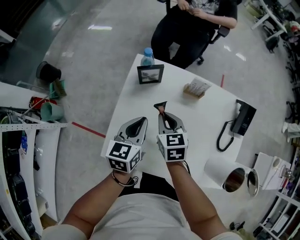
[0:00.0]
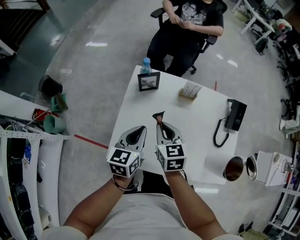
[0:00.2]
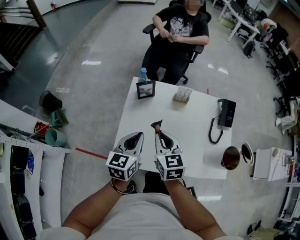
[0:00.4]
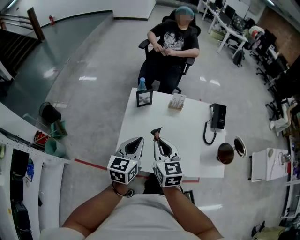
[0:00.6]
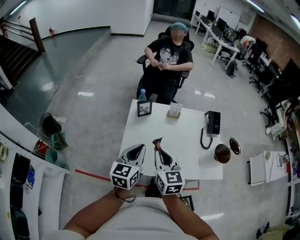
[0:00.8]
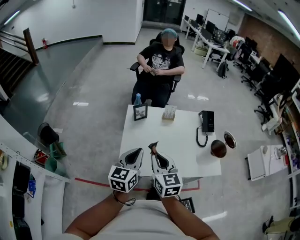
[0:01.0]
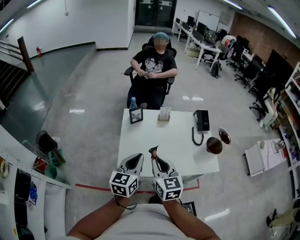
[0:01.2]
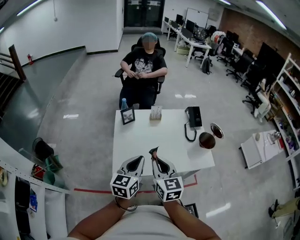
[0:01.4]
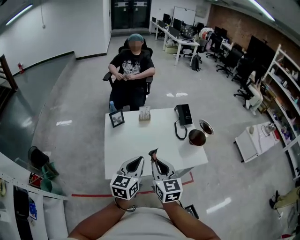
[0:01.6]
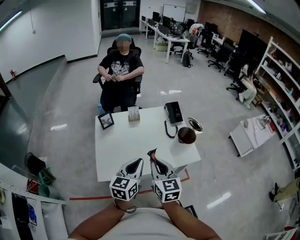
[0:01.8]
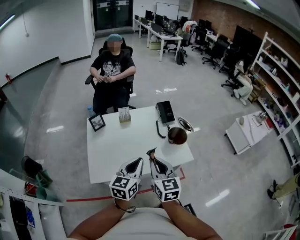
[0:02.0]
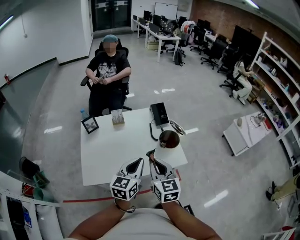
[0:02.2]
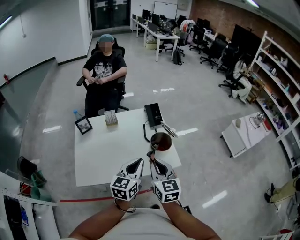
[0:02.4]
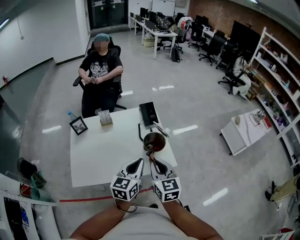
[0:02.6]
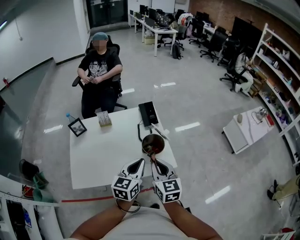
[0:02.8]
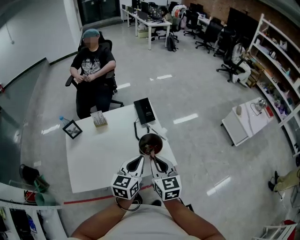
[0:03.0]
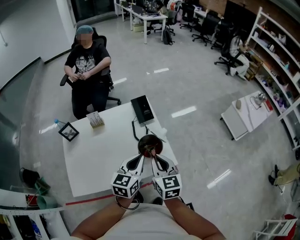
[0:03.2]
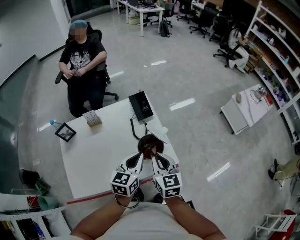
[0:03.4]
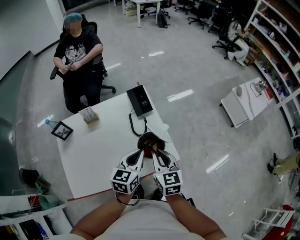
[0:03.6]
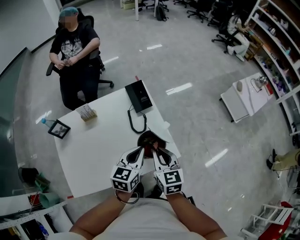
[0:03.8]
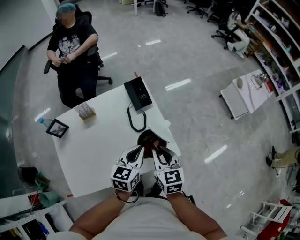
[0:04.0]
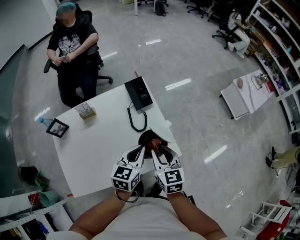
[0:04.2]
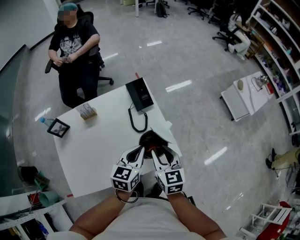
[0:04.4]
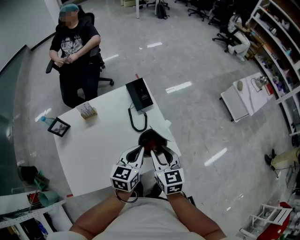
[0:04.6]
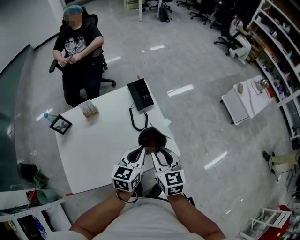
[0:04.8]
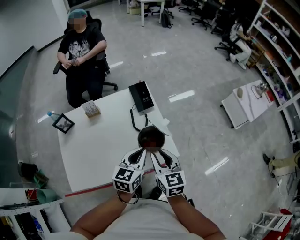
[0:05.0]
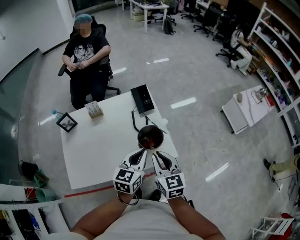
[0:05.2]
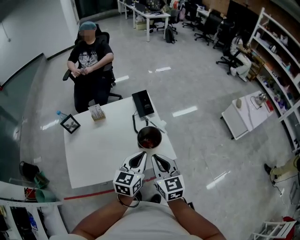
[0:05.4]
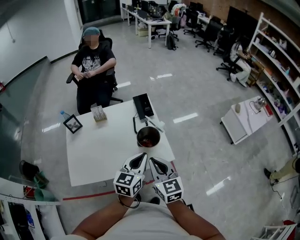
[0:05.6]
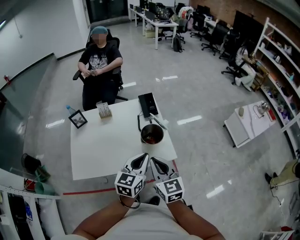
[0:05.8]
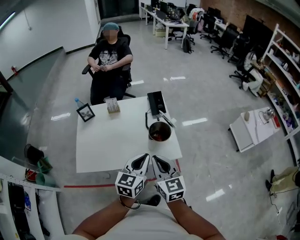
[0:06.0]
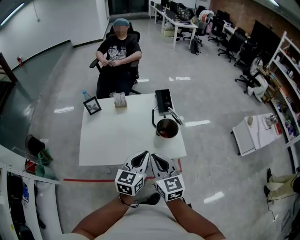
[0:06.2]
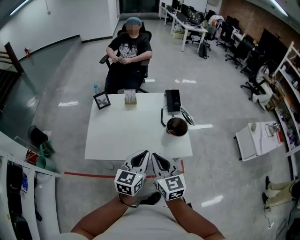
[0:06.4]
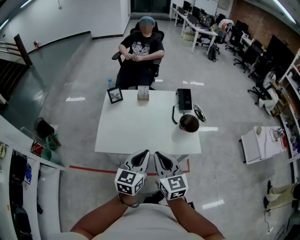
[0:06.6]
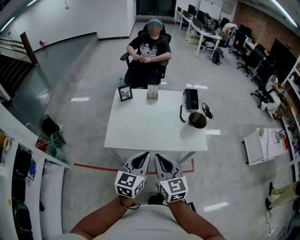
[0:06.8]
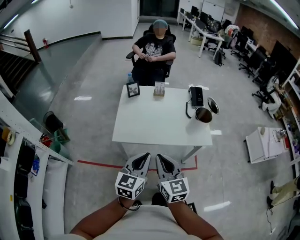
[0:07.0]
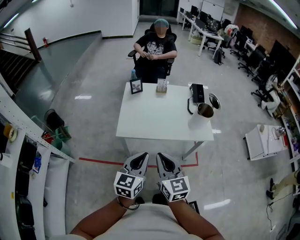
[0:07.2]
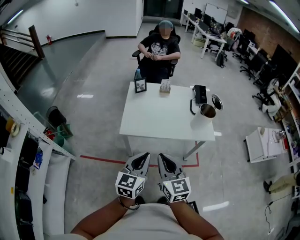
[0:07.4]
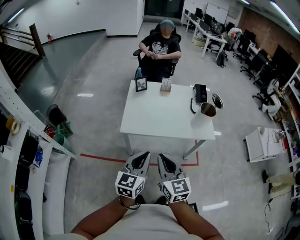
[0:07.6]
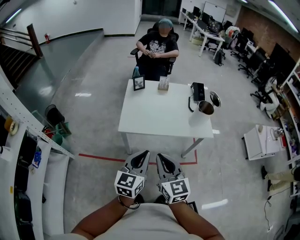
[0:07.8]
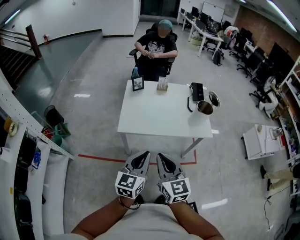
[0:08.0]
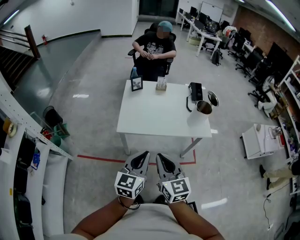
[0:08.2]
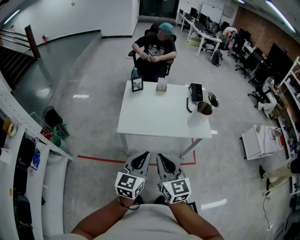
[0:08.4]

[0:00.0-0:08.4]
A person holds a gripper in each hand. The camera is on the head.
0:00.0 to 0:01.4: The two grippers go approximately 35 cm backward and upward. The left gripper swivels some 30 degrees. The right gripper turns by some 30 degrees.
0:01.4 to 0:02.8: The two grippers go some 35 cm to the right.
0:02.8 to 0:04.2: The two grippers go approximately 15 cm forward and downward.
0:04.2 to 0:05.6: The two grippers go some 15 cm backward and upward.
0:05.6 to 0:07.0: Both grippers travel together to the left and backward, about 35 cm.
0:07.0 to 0:08.4: The grippers both shift backward by some 5 cm.

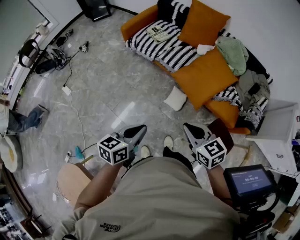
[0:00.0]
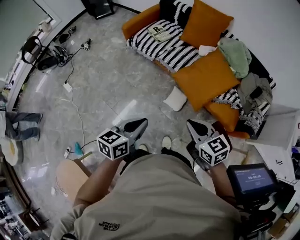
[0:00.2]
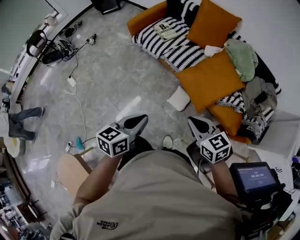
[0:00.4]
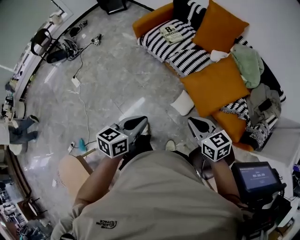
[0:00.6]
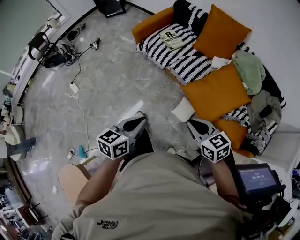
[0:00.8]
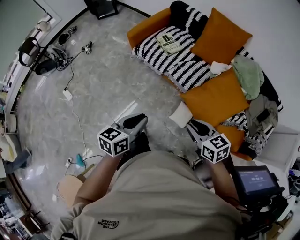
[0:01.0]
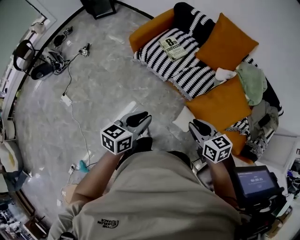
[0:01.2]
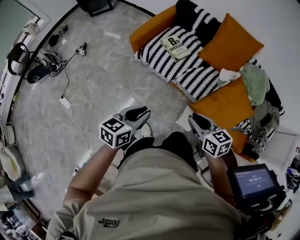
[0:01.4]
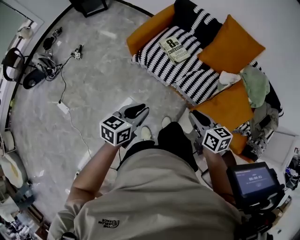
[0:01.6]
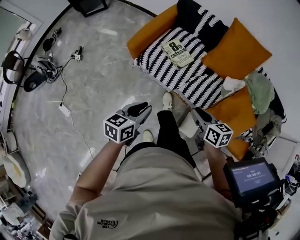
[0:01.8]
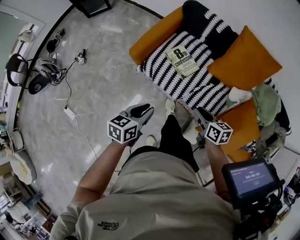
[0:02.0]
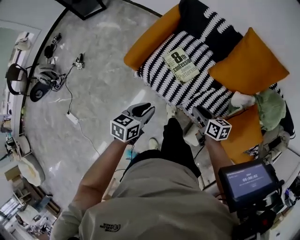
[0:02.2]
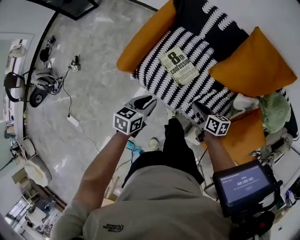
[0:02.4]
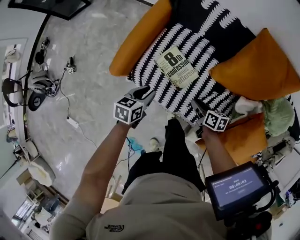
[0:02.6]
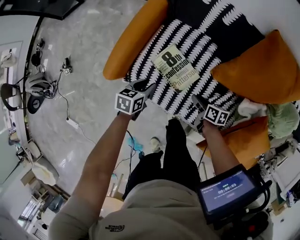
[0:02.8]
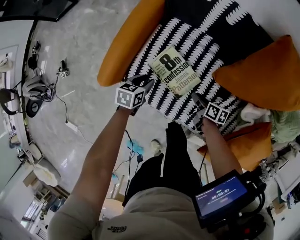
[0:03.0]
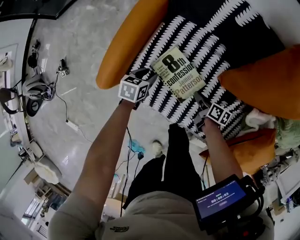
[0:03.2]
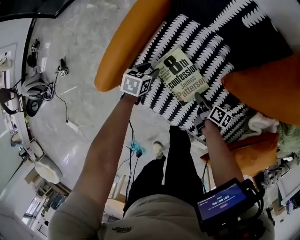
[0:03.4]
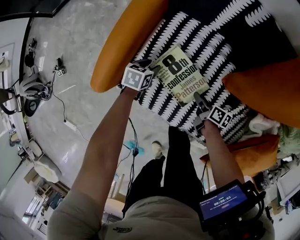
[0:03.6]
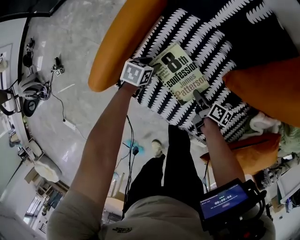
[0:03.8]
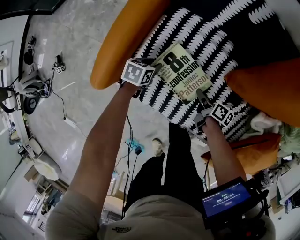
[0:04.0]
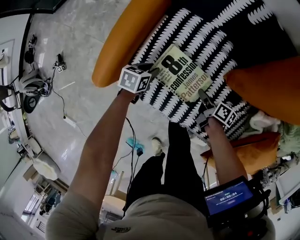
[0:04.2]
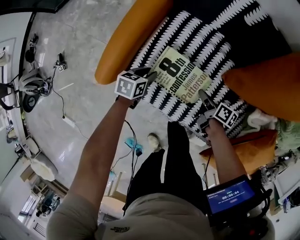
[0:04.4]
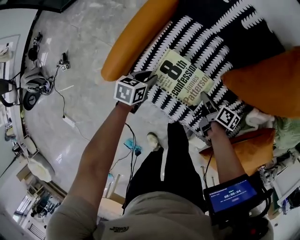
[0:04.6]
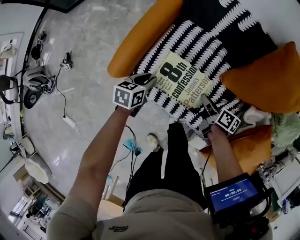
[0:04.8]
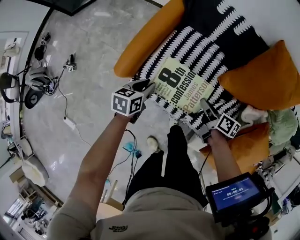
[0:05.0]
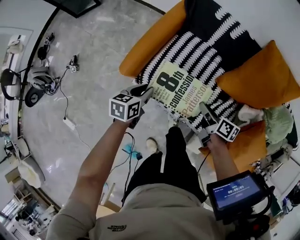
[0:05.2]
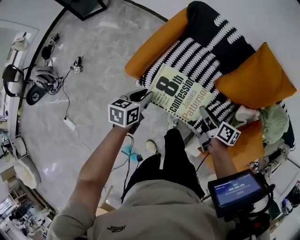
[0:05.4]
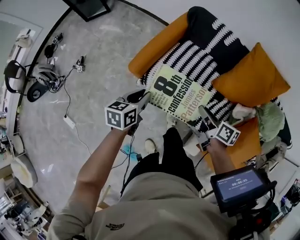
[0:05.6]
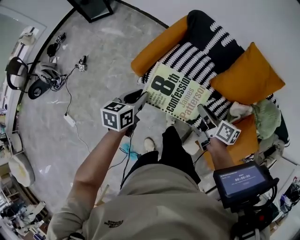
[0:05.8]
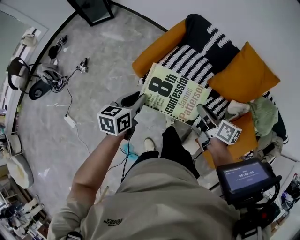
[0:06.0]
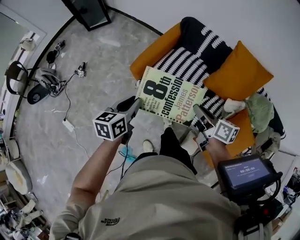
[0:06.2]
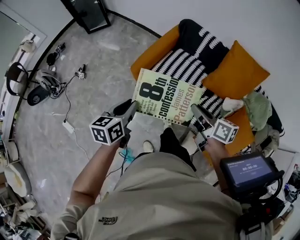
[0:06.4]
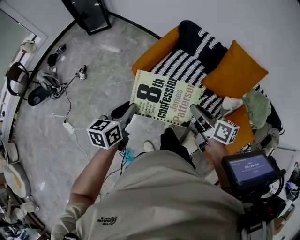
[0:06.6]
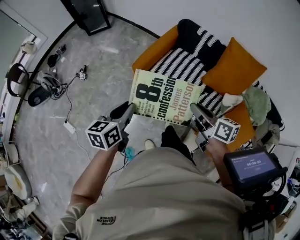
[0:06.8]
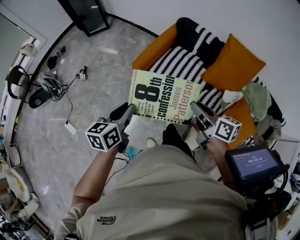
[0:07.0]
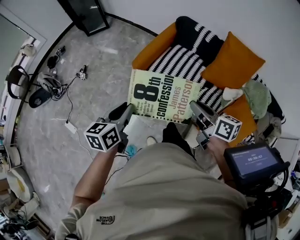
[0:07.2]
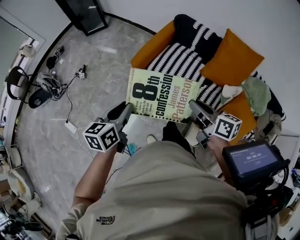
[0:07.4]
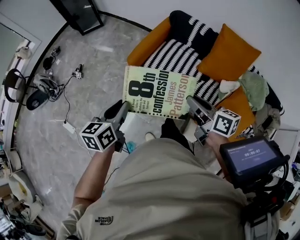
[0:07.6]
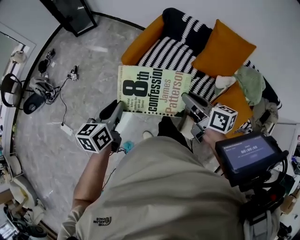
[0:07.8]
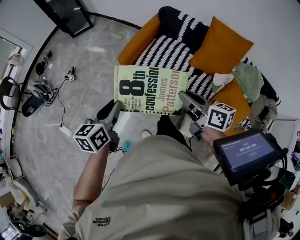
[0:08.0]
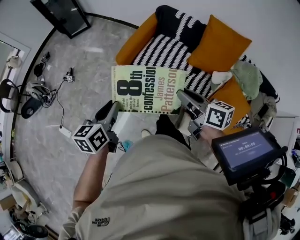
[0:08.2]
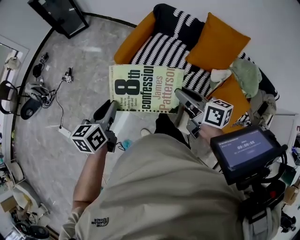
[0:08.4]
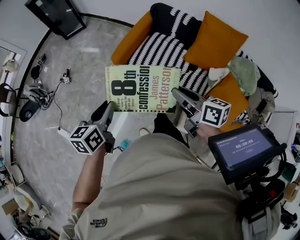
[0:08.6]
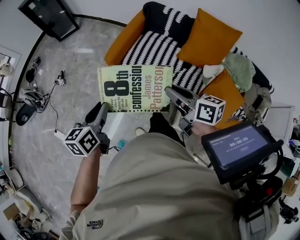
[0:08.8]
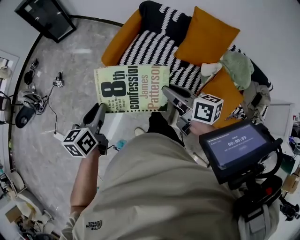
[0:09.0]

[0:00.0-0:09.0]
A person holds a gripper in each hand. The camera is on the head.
0:00.0 to 0:01.6: The pair of grippers is taken forward, roughly 50 cm. The right gripper swivels about 30 degrees.
0:01.6 to 0:03.0: The two grippers travel together, forward, roughly 50 cm. Both grippers travel together downward, roughly 40 cm. The right gripper turns by roughly 40 degrees. The left gripper swivels about 30 degrees.
0:03.0 to 0:04.4: The left gripper shifts roughly 5 cm downward.
0:04.4 to 0:06.0: Both grippers move upward and backward, about 50 cm. The right gripper changes its angle by roughly 30 degrees. Meanwhile the left gripper swivels some 30 degrees.
0:06.0 to 0:07.6: Both grippers travel together backward, upward and to the left, about 20 cm.
0:07.6 to 0:09.0: The two grippers keep their place.

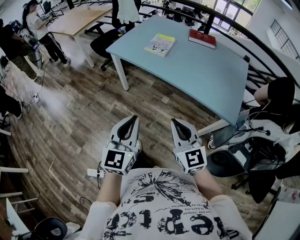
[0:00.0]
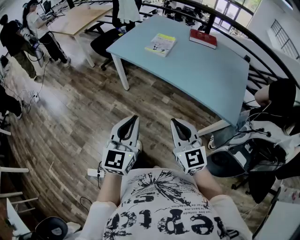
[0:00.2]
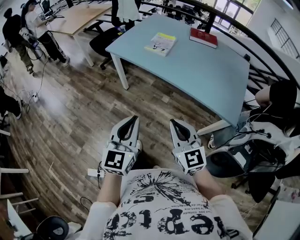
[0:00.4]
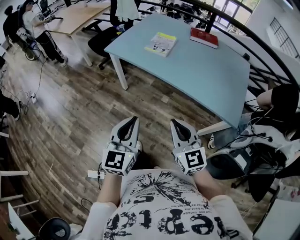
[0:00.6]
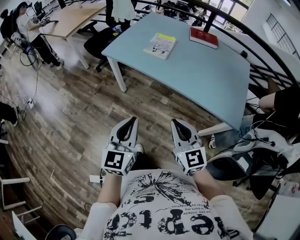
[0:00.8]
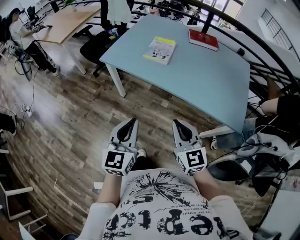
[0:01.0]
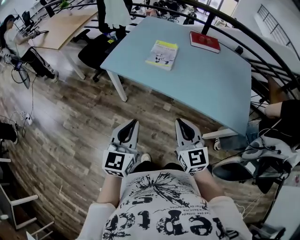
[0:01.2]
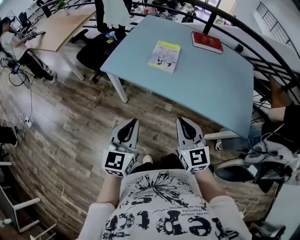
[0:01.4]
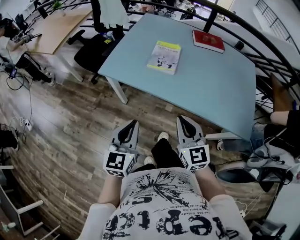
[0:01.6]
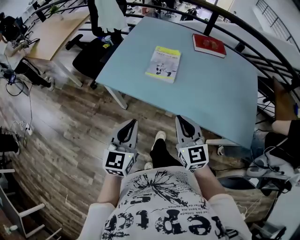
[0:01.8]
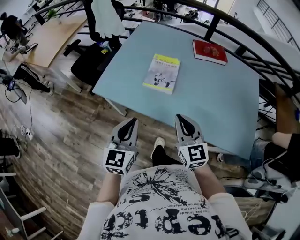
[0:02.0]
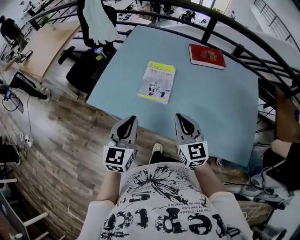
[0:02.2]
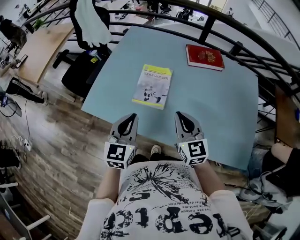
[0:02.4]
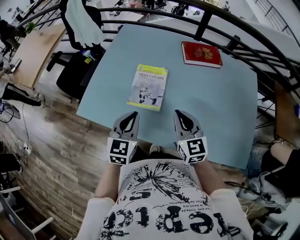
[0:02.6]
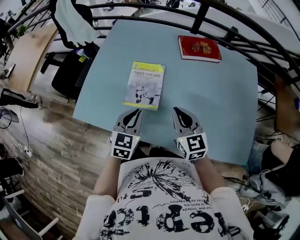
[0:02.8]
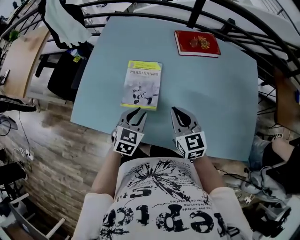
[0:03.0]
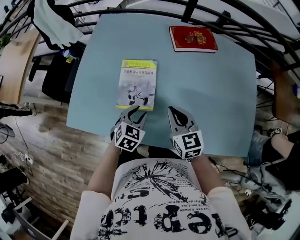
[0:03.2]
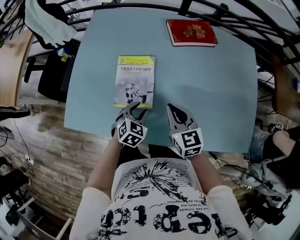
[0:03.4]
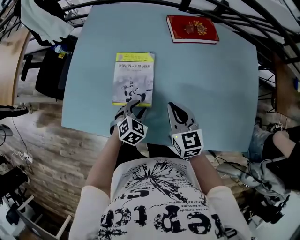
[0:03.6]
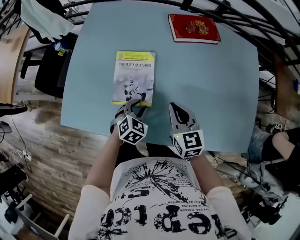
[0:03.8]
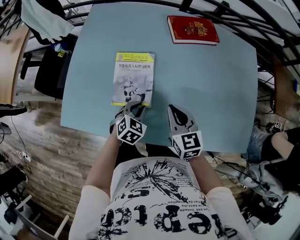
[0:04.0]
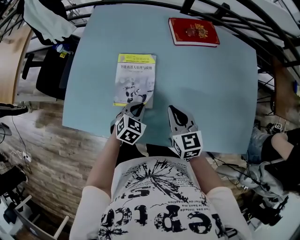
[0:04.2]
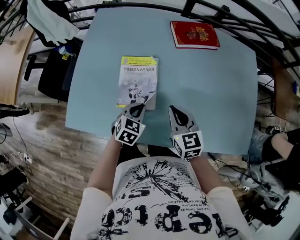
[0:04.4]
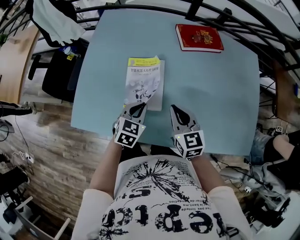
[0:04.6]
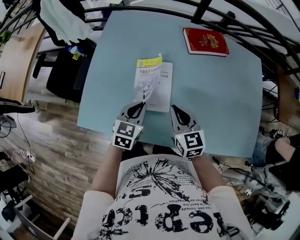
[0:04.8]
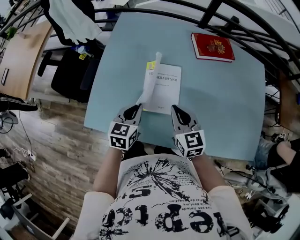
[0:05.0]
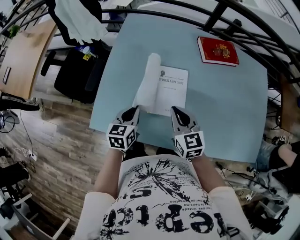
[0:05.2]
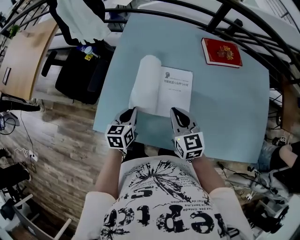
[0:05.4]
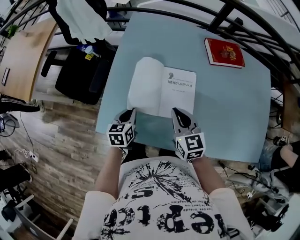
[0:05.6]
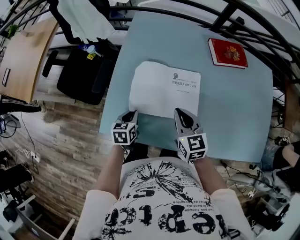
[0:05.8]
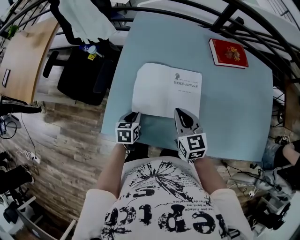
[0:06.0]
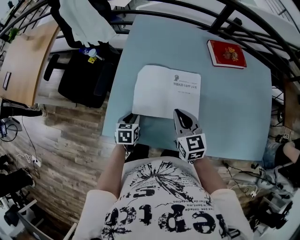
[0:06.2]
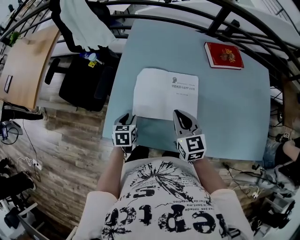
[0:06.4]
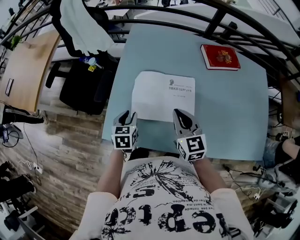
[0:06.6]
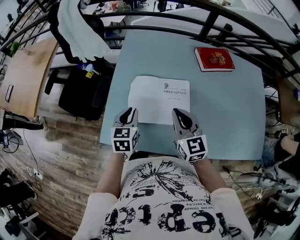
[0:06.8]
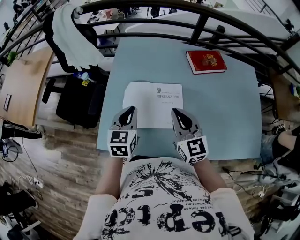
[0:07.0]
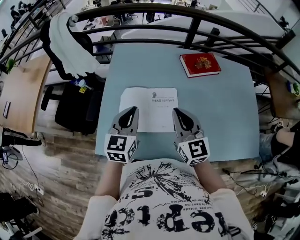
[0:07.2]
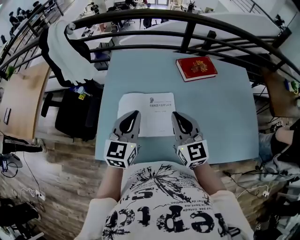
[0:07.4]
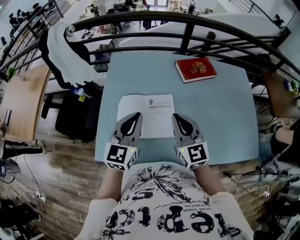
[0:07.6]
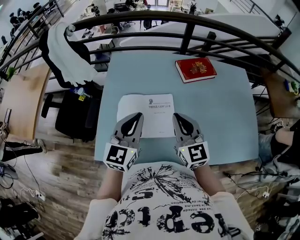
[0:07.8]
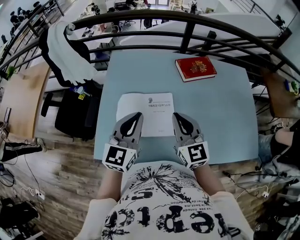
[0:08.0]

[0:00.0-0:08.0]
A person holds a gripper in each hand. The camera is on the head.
0:00.0 to 0:01.6: The right gripper is displaced forward by approximately 30 cm. Meanwhile the left gripper goes some 30 cm forward and to the left.
0:01.6 to 0:03.2: The left gripper goes approximately 40 cm forward and downward, points its fingers roughly 30 degrees further downward, and opens its fingers. The right gripper shifts about 35 cm forward.
0:03.2 to 0:04.8: The two grippers go about 5 cm to the left. The left gripper closes its fingers.
0:04.8 to 0:06.4: The right gripper is displaced to the left by approximately 15 cm. The left gripper shifts some 25 cm to the left and downward, changes its angle by about 30 degrees, and opens its fingers.
0:06.4 to 0:08.0: The left gripper shifts roughly 35 cm upward and to the right, angles its fingers upward, by about 50 degrees, and closes, while the right gripper moves upward and to the right, roughly 15 cm, and turns by some 20 degrees.
